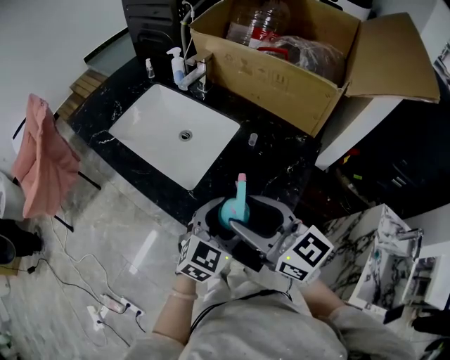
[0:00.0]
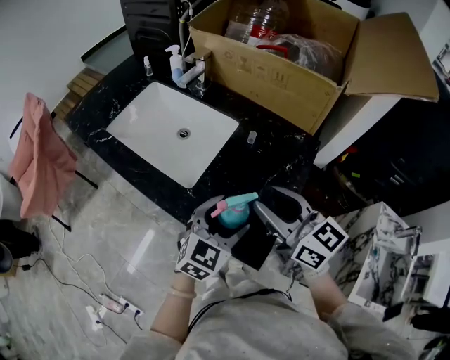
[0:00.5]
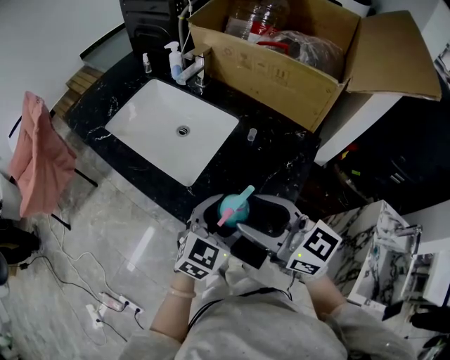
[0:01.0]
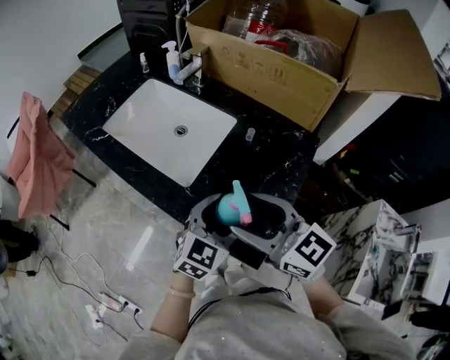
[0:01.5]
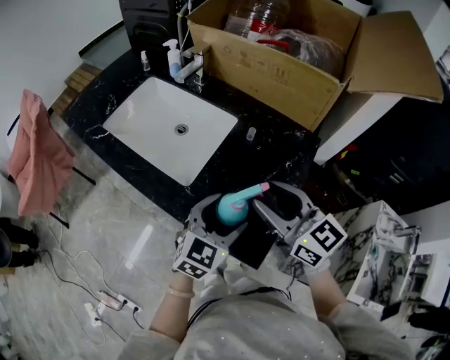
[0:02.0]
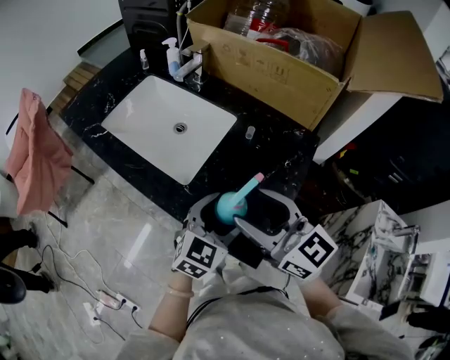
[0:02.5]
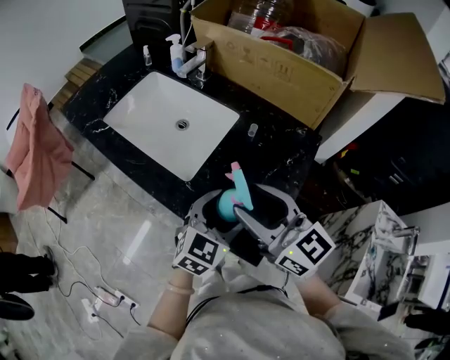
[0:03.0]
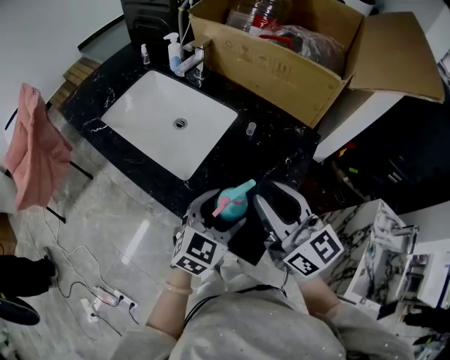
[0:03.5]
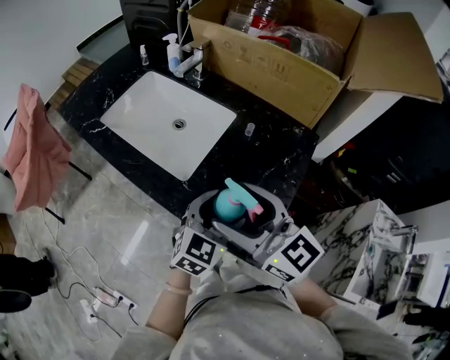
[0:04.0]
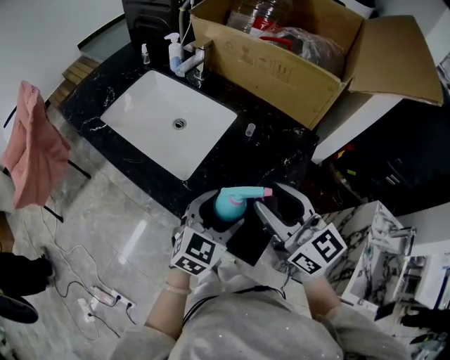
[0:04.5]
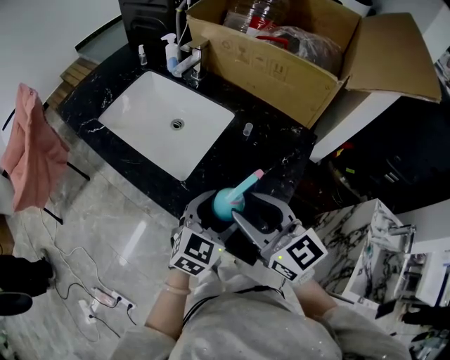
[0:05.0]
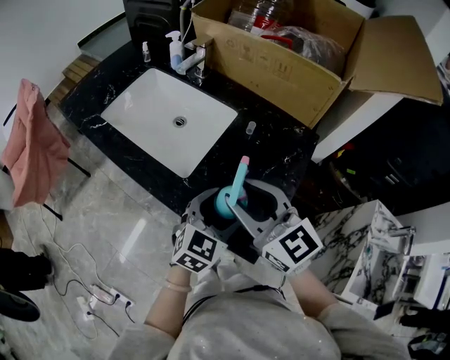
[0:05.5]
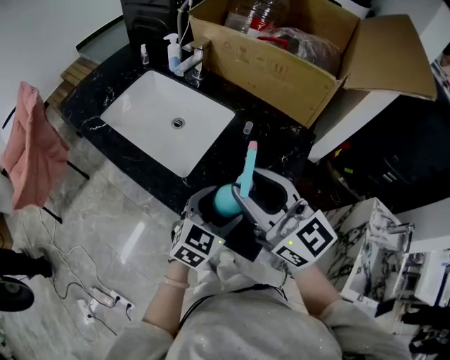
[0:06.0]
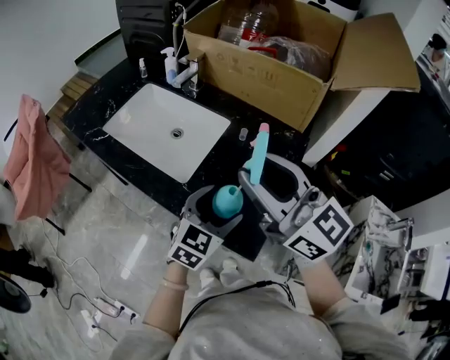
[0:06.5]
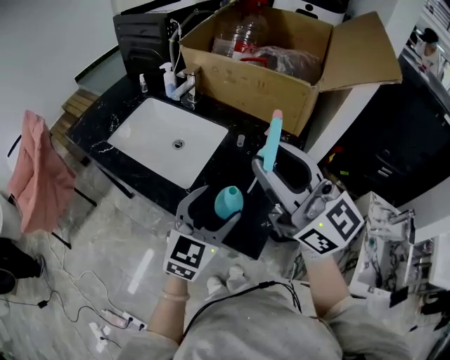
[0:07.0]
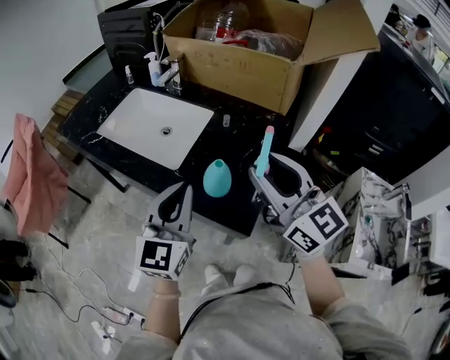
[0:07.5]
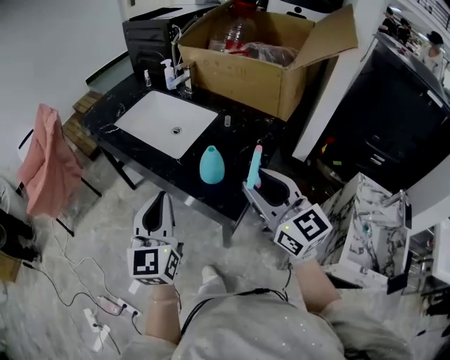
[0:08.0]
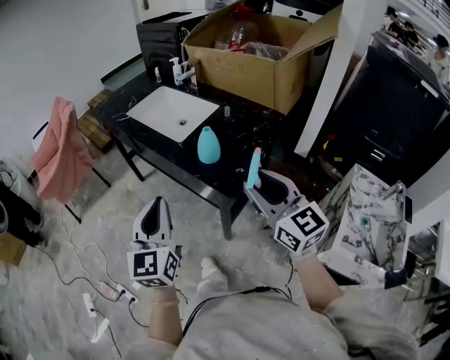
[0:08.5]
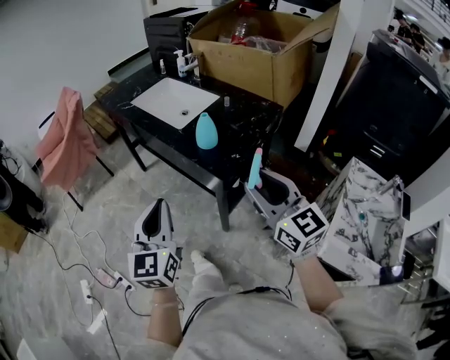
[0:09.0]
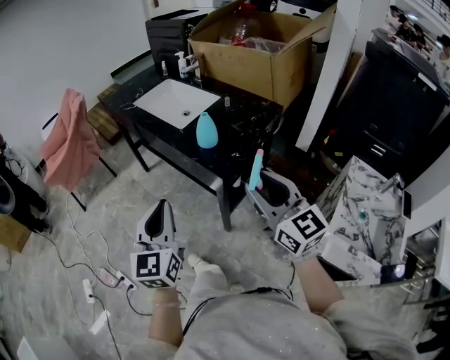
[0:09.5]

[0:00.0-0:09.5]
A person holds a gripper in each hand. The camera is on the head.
0:00.0 to 0:02.0: The right gripper moves left and right over roughly 5 cm, changing direction 2 times.
0:02.0 to 0:04.0: The right gripper moves left and right over approximately 10 cm, changing direction 2 times, and opens its fingers.
0:04.0 to 0:05.5: The right gripper reaches about 10 cm to the right, then returns, and closes up.
0:05.5 to 0:07.5: The right gripper shifts about 15 cm upward, to the right and backward; the left gripper goes approximately 15 cm upward and to the left, swivels about 30 degrees, and closes its fingers.
0:07.5 to 0:09.5: The two grippers go about 25 cm backward. The left gripper turns by some 30 degrees.

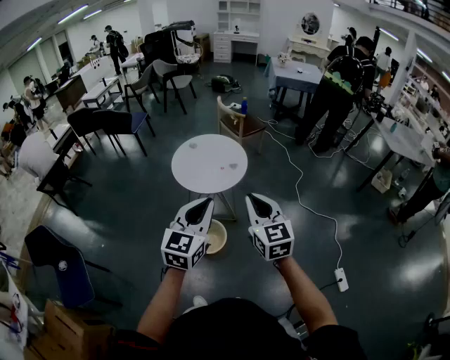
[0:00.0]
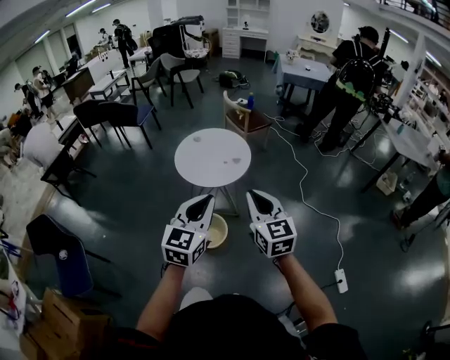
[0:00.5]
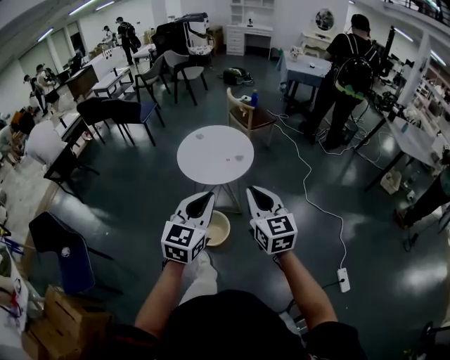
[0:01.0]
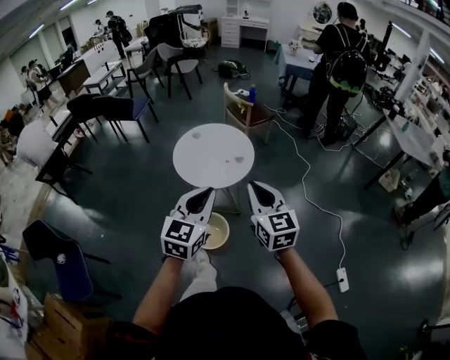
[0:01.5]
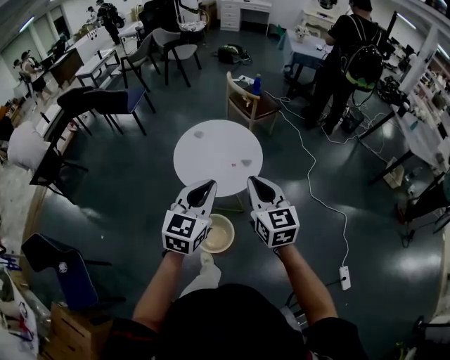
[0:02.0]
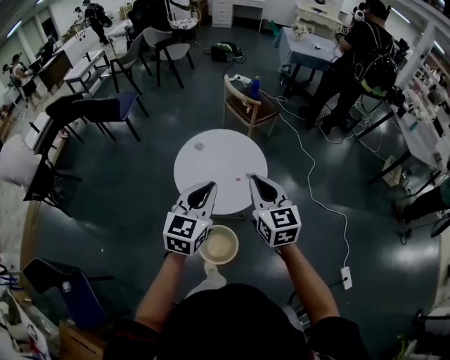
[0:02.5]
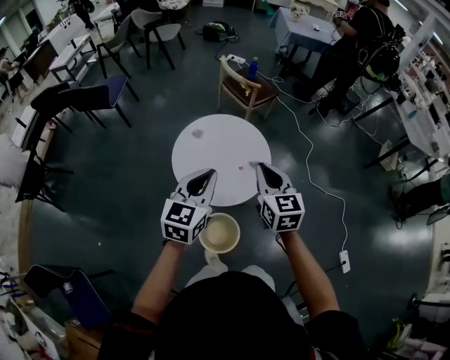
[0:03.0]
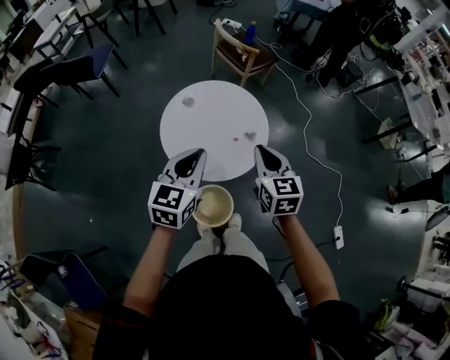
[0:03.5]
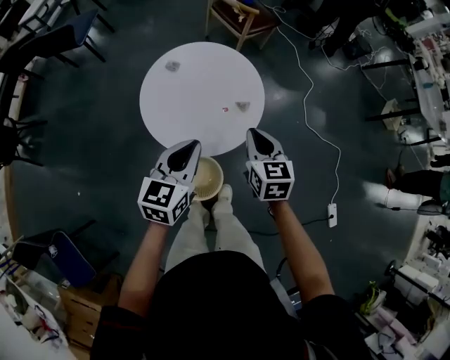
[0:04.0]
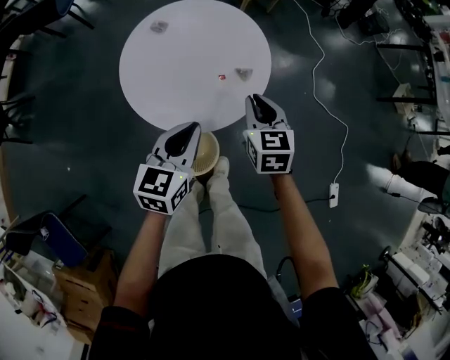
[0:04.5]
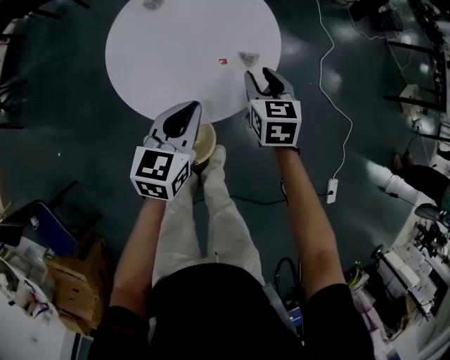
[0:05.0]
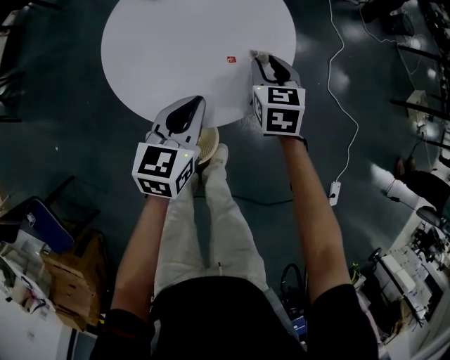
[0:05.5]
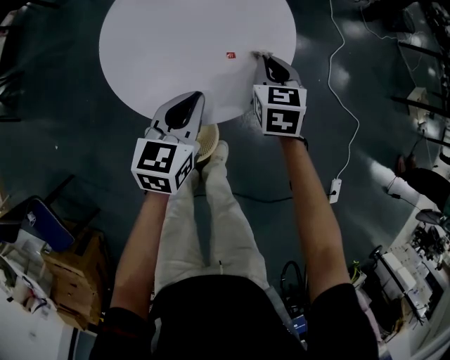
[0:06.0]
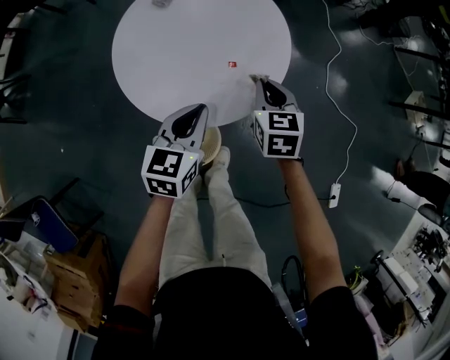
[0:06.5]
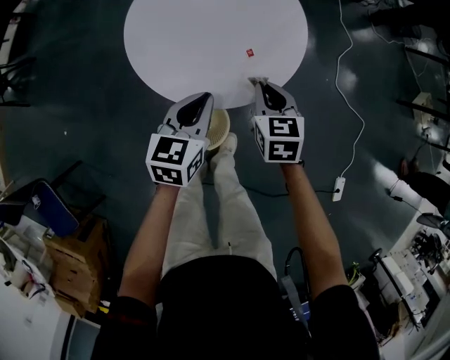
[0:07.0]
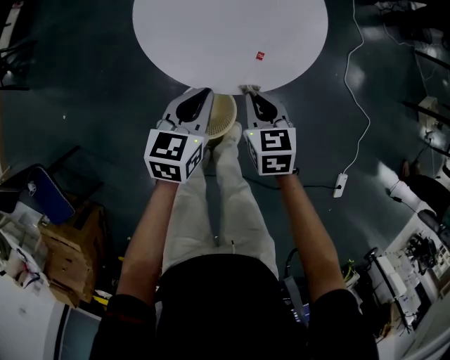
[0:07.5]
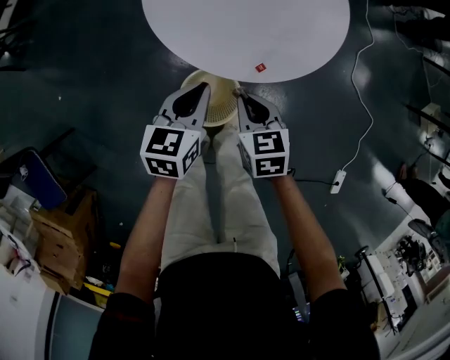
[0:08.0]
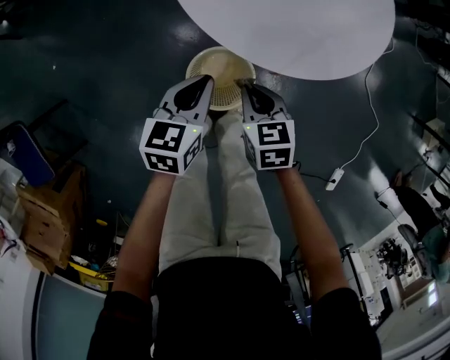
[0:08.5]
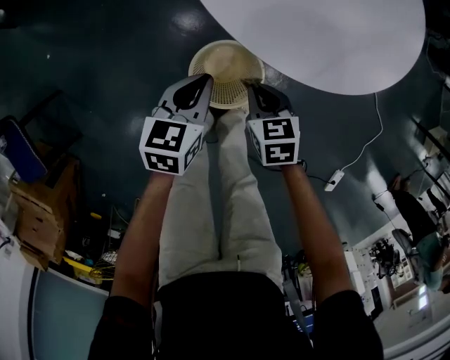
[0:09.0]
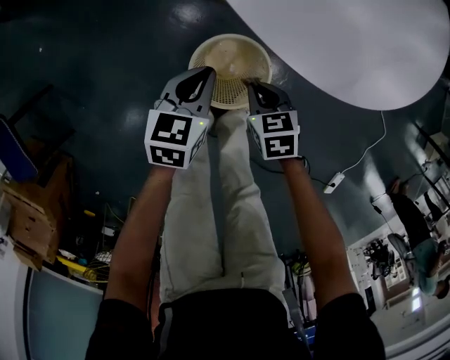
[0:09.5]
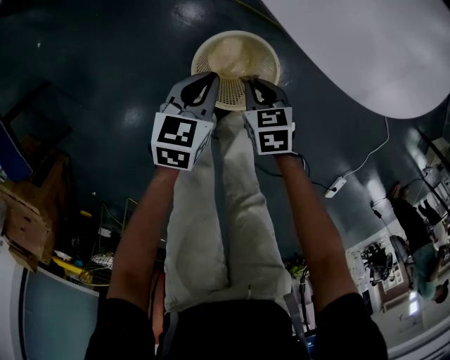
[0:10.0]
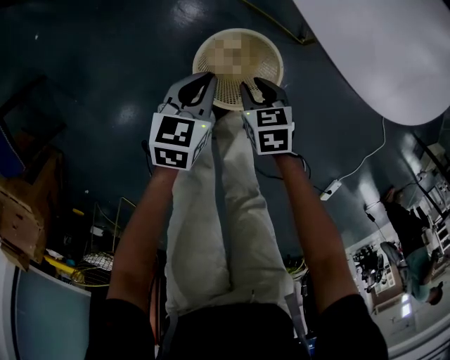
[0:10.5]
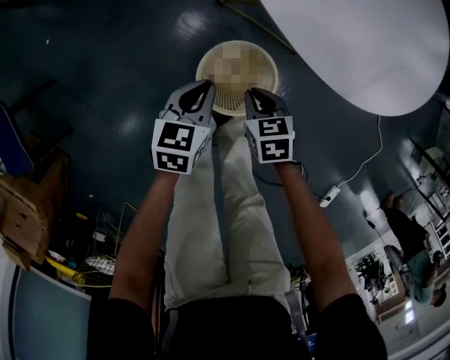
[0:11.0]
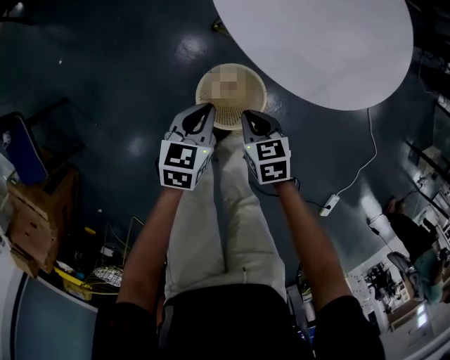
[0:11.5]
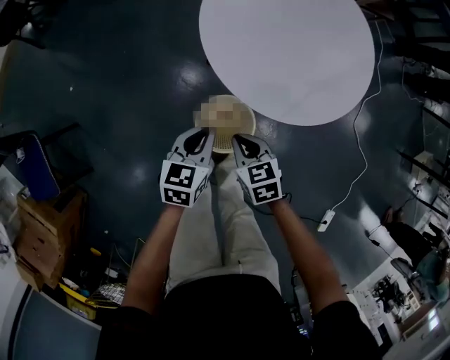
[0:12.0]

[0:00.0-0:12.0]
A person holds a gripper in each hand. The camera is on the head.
0:00.0 to 0:02.0: Both grippers travel together forward, some 25 cm.
0:02.0 to 0:04.0: Both grippers travel together downward and forward, roughly 30 cm. The right gripper rotates roughly 20 degrees.
0:04.0 to 0:06.0: The right gripper heads downward and forward, covering roughly 25 cm, and opens and closes again, while the left gripper heads downward, covering some 25 cm.
0:06.0 to 0:08.0: The left gripper shifts roughly 15 cm backward, to the left and downward. The right gripper goes roughly 25 cm backward and to the left, and swivels approximately 20 degrees.
0:08.0 to 0:10.0: Both grippers travel together downward, some 30 cm.
0:10.0 to 0:12.0: Both grippers travel together upward, roughly 25 cm. The right gripper opens, then closes again.

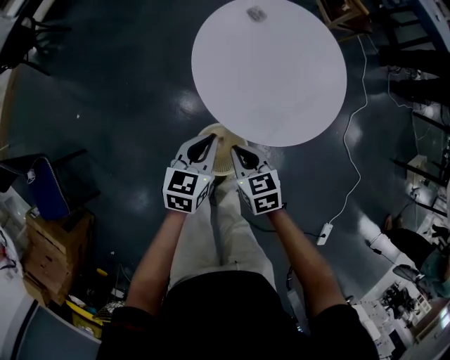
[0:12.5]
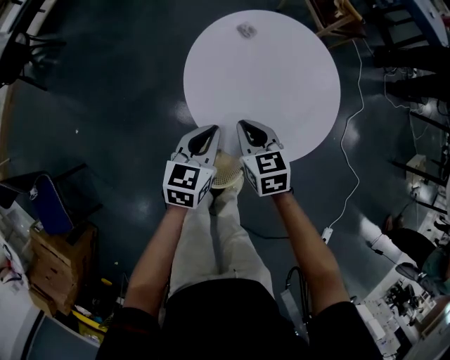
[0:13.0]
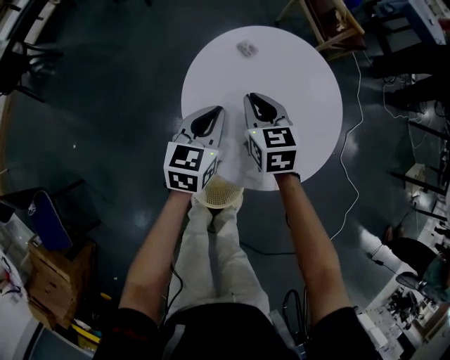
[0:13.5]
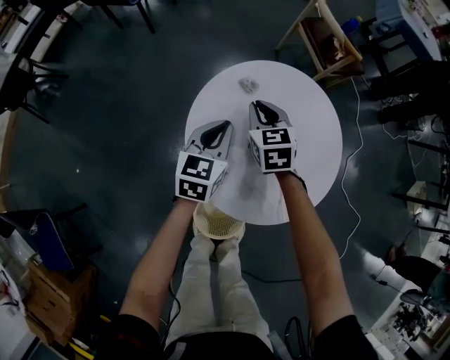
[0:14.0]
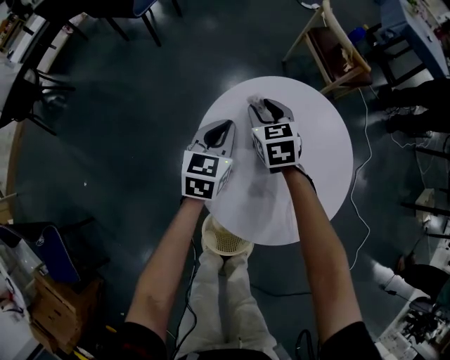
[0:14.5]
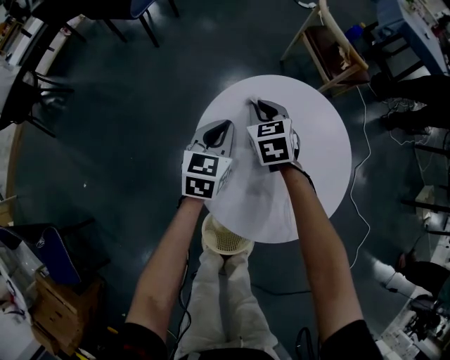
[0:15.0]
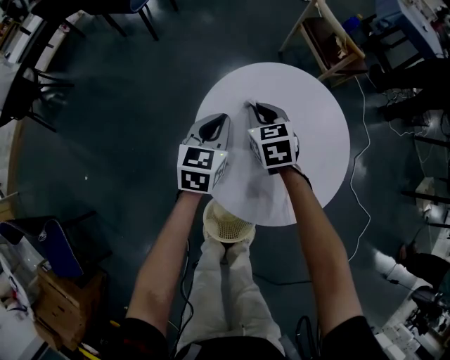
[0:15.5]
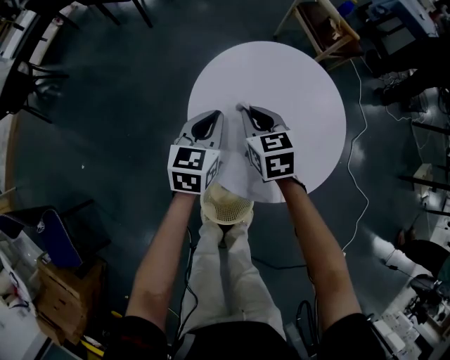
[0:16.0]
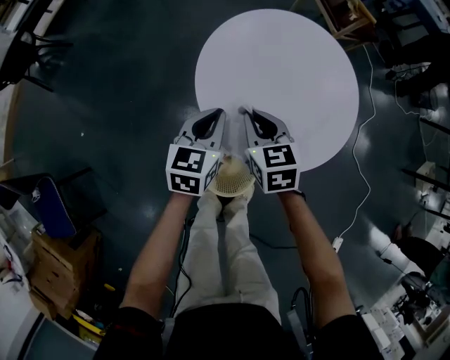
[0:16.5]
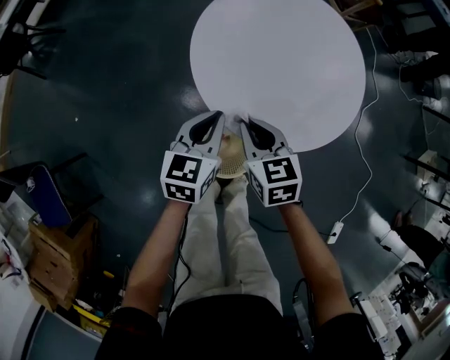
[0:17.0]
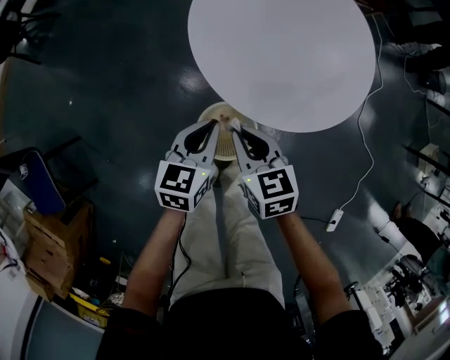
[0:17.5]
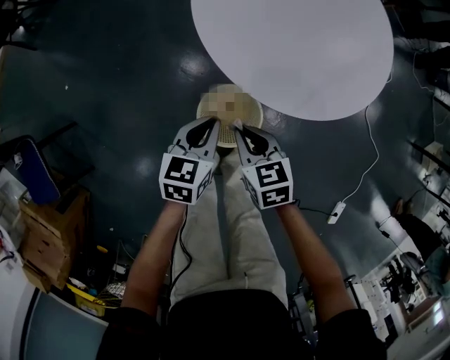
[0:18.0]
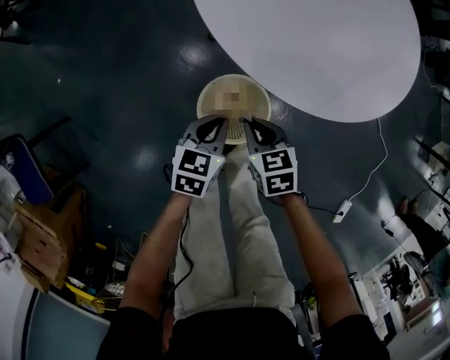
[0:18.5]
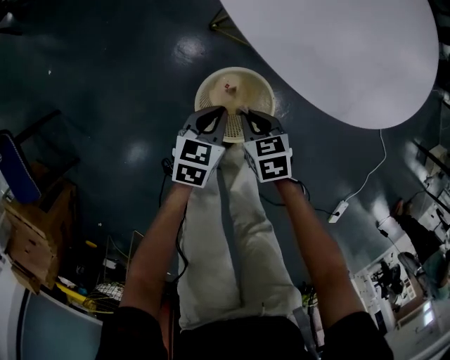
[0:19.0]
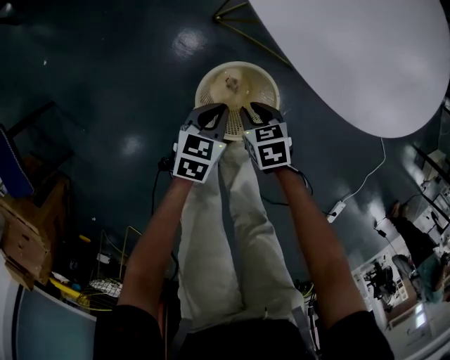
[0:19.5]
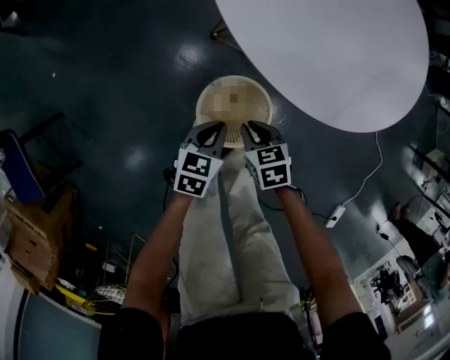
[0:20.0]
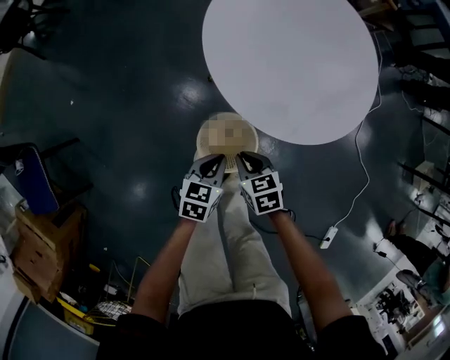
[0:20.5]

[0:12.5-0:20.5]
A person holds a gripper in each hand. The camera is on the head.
0:12.5 to 0:14.5: Both grippers move forward, about 40 cm. The right gripper swivels some 20 degrees, and opens.
0:14.5 to 0:16.5: The grippers both shift backward by about 25 cm. The right gripper closes its fingers.
0:16.5 to 0:18.5: The grippers both shift downward and backward by some 35 cm.
0:18.5 to 0:20.5: The right gripper moves about 15 cm downward and comes back; the left gripper goes approximately 10 cm upward.
